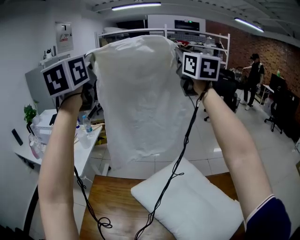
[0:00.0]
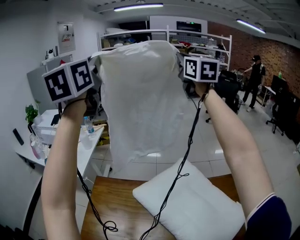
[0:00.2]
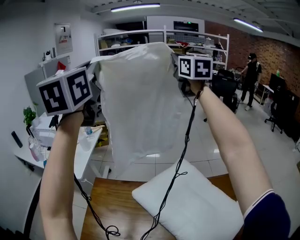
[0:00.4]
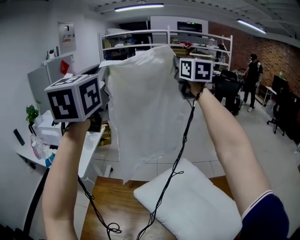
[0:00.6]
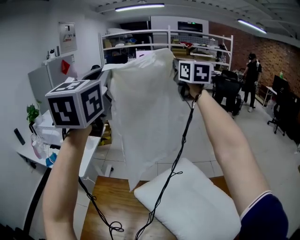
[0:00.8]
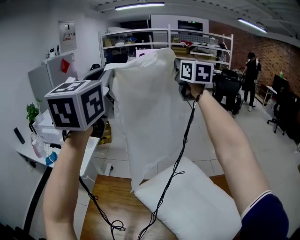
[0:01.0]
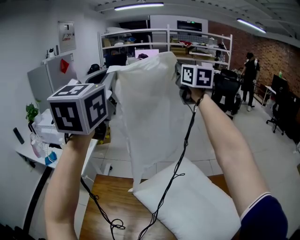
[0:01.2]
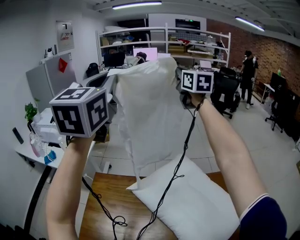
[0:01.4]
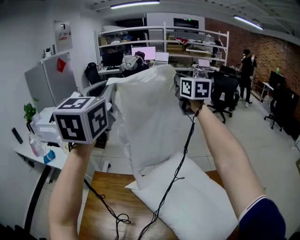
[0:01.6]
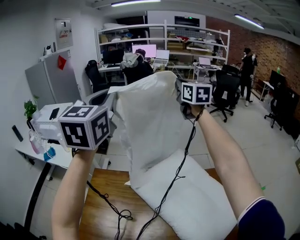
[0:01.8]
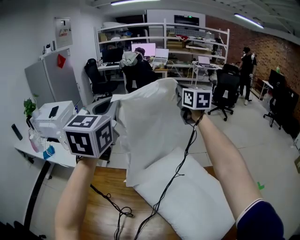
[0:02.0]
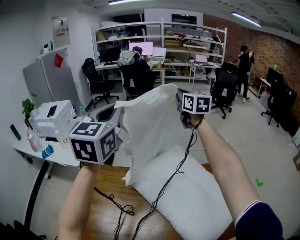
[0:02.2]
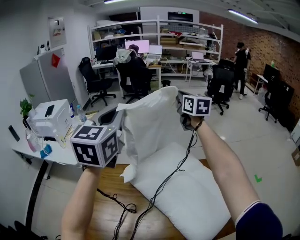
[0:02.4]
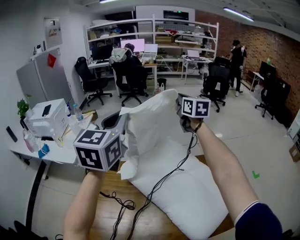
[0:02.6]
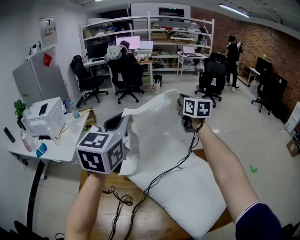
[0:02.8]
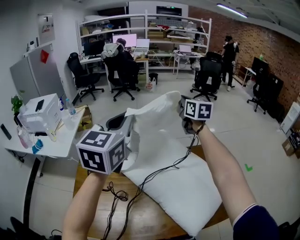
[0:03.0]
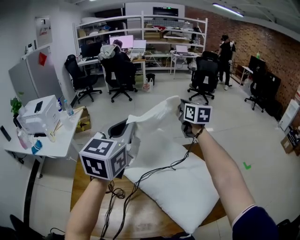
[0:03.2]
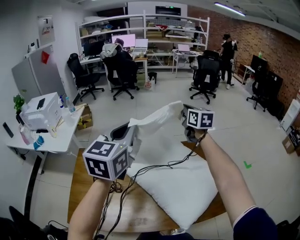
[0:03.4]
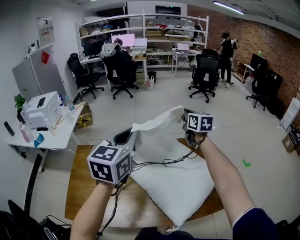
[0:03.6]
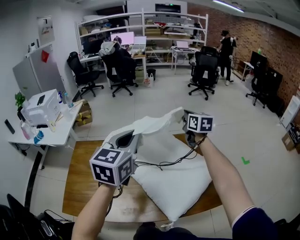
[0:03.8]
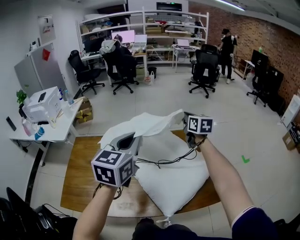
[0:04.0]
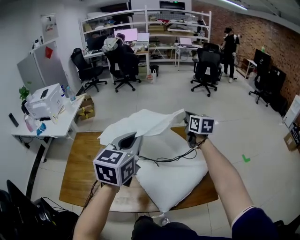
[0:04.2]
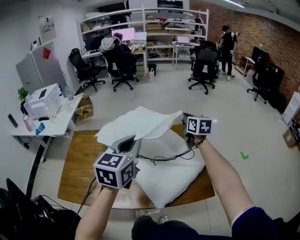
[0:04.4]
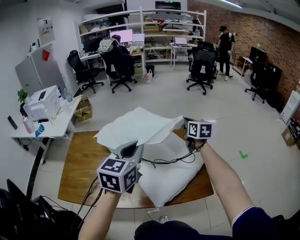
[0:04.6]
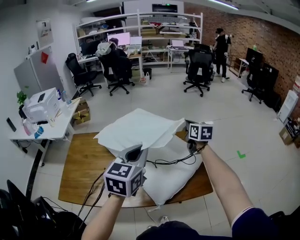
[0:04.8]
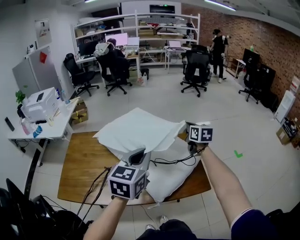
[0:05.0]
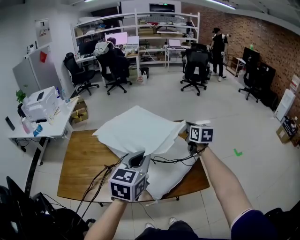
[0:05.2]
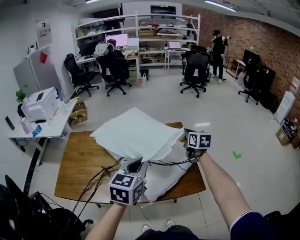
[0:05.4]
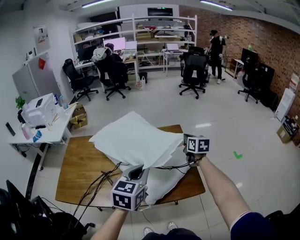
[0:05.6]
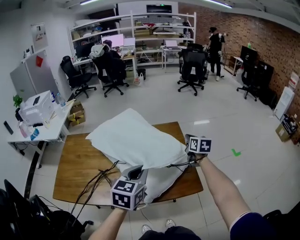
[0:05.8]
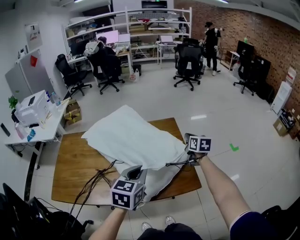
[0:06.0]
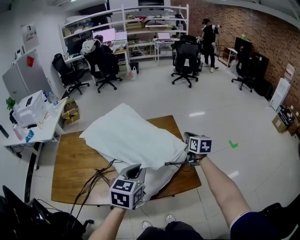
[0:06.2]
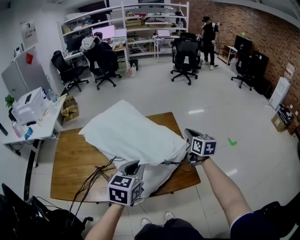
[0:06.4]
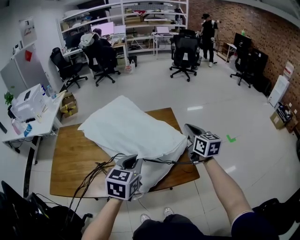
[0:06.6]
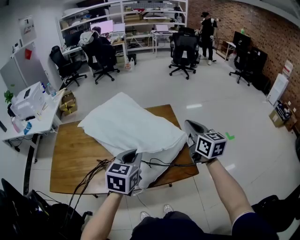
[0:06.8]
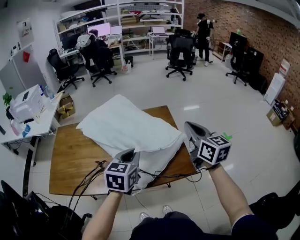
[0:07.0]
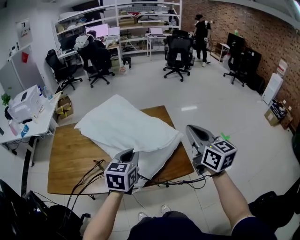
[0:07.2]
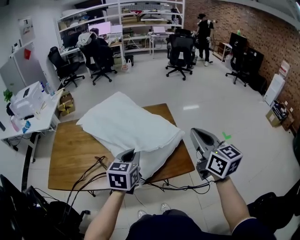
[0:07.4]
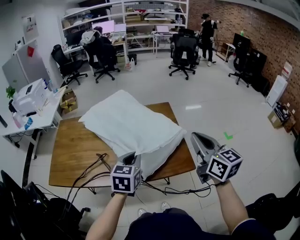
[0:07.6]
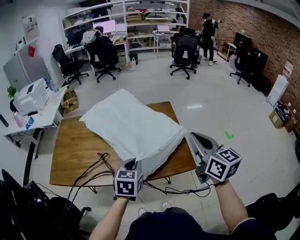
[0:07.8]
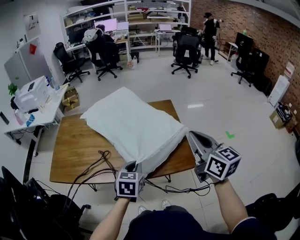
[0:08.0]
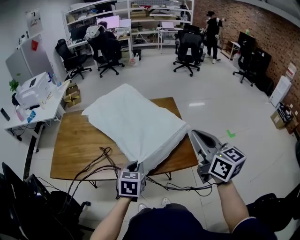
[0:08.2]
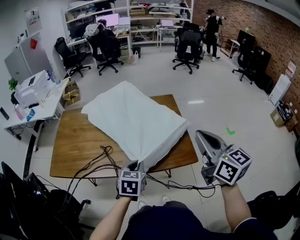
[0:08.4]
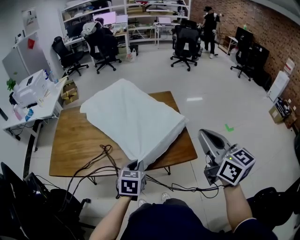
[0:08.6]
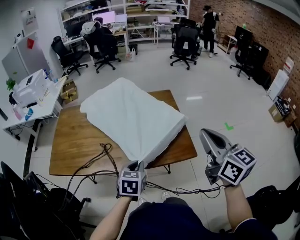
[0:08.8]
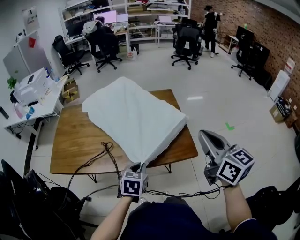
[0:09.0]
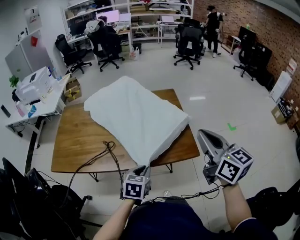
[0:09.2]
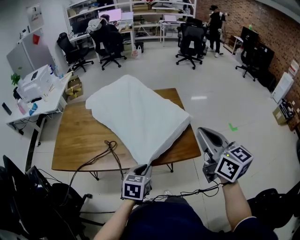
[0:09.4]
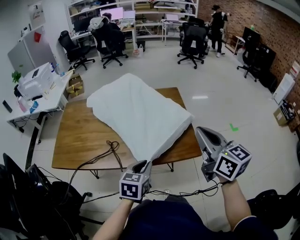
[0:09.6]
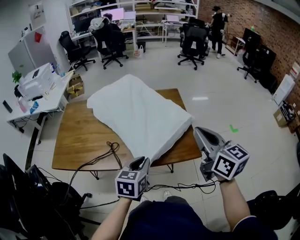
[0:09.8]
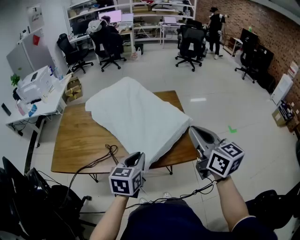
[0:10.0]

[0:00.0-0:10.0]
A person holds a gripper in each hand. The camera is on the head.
0:00.0 to 0:01.4: The right gripper moves downward, roughly 10 cm. Meanwhile the left gripper shifts roughly 15 cm to the right, downward and backward.
0:01.4 to 0:02.8: The grippers both shift downward, to the right and backward by roughly 25 cm.
0:02.8 to 0:04.2: Both grippers move to the right, backward and downward, roughly 30 cm.
0:04.2 to 0:05.8: The right gripper shifts some 20 cm to the right, downward and backward, while the left gripper goes about 20 cm downward, to the right and backward.
0:05.8 to 0:07.2: The right gripper moves backward and upward, approximately 25 cm, and changes its angle by some 20 degrees.
0:07.2 to 0:08.6: The left gripper heads downward and backward, covering approximately 15 cm, while the right gripper moves backward, some 10 cm.
0:08.6 to 0:10.0: The right gripper moves roughly 5 cm, while the left gripper goes approximately 5 cm upward.

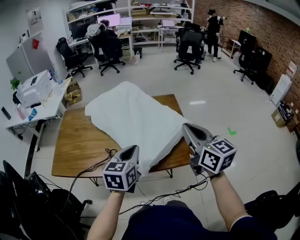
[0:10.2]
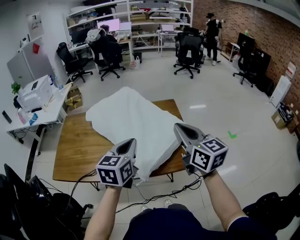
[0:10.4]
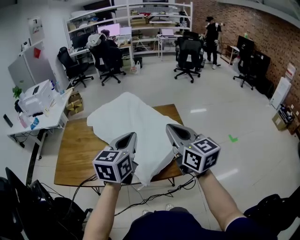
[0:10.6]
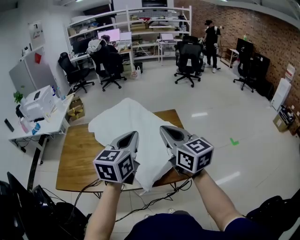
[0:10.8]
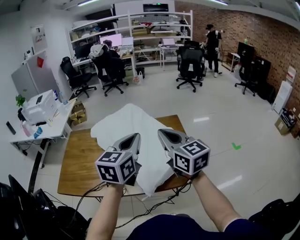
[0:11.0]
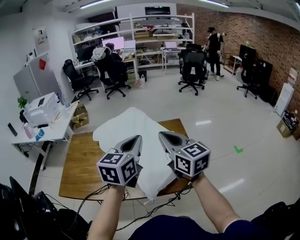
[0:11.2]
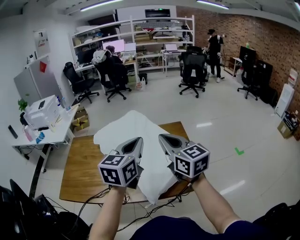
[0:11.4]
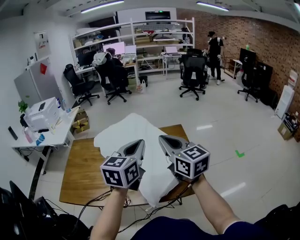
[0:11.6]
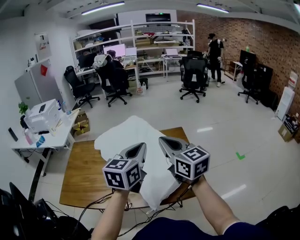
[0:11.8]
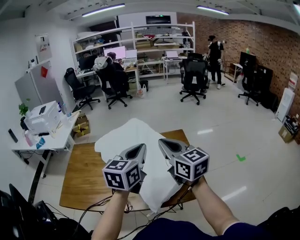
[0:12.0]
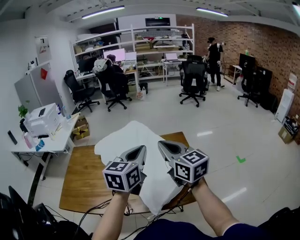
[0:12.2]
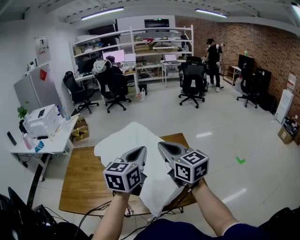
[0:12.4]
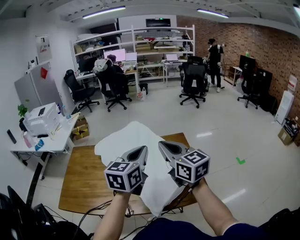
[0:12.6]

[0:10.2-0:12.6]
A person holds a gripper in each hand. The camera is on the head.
0:10.2 to 0:11.4: The right gripper travels to the left and forward by roughly 15 cm. Meanwhile the left gripper heads upward and forward, covering roughly 15 cm.
0:11.4 to 0:12.6: The grippers move only a little.

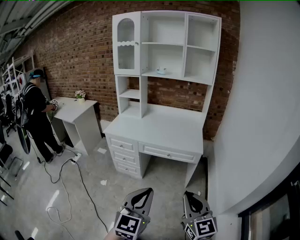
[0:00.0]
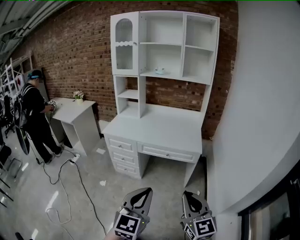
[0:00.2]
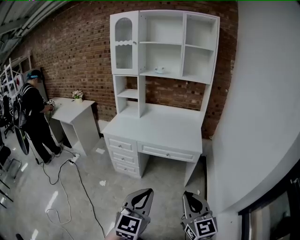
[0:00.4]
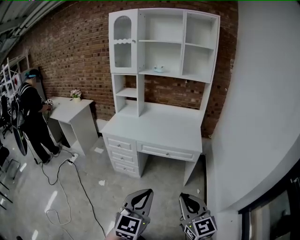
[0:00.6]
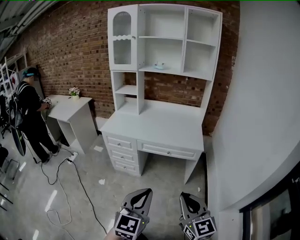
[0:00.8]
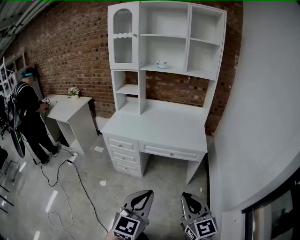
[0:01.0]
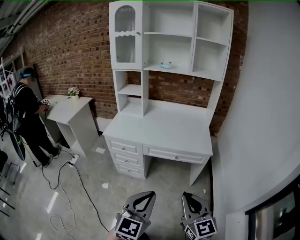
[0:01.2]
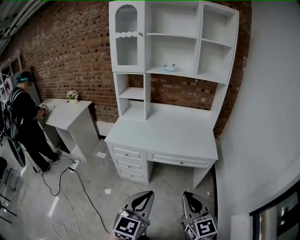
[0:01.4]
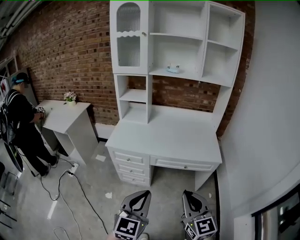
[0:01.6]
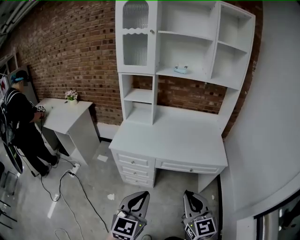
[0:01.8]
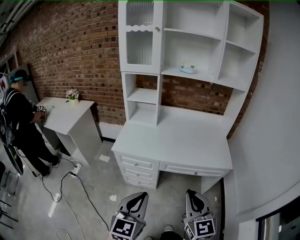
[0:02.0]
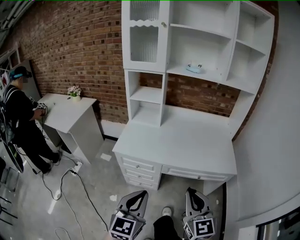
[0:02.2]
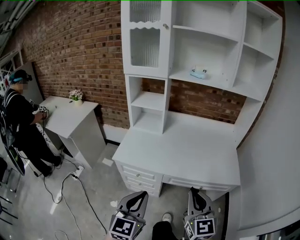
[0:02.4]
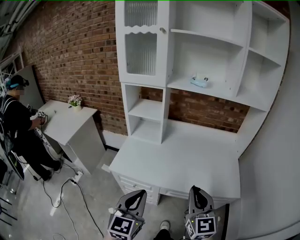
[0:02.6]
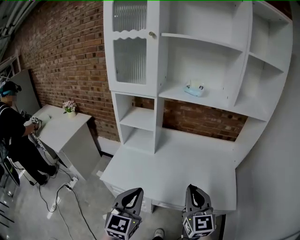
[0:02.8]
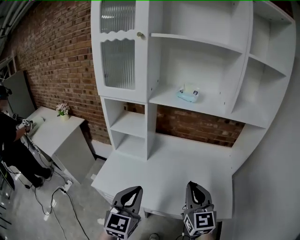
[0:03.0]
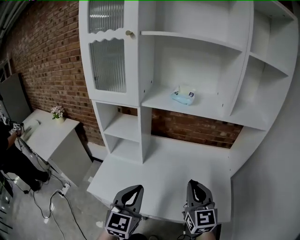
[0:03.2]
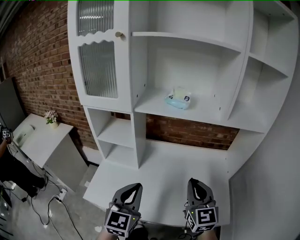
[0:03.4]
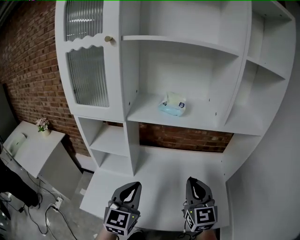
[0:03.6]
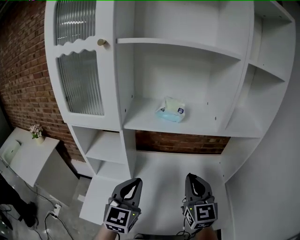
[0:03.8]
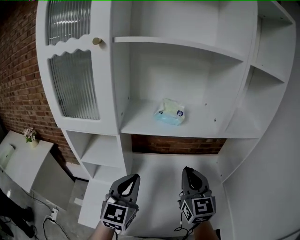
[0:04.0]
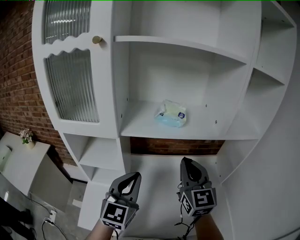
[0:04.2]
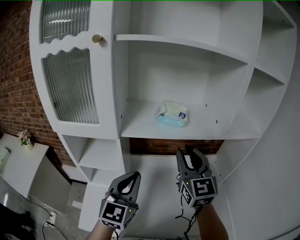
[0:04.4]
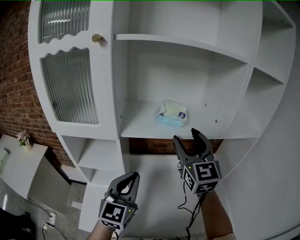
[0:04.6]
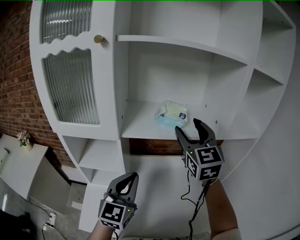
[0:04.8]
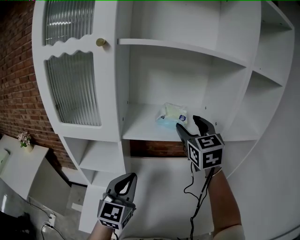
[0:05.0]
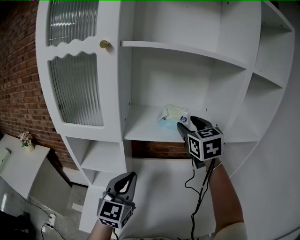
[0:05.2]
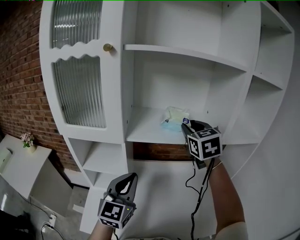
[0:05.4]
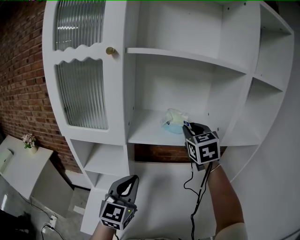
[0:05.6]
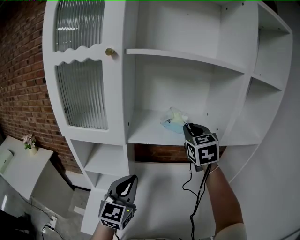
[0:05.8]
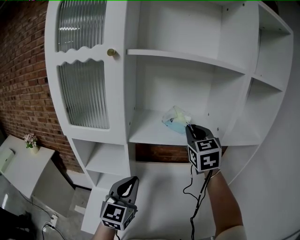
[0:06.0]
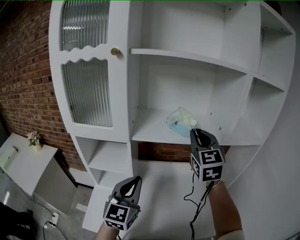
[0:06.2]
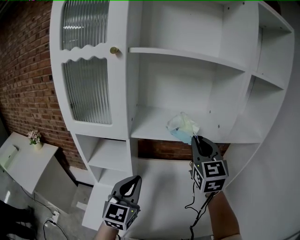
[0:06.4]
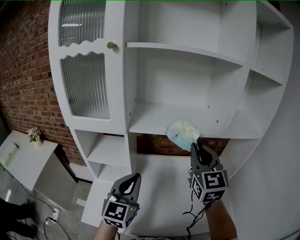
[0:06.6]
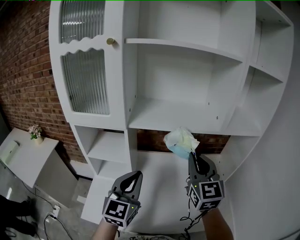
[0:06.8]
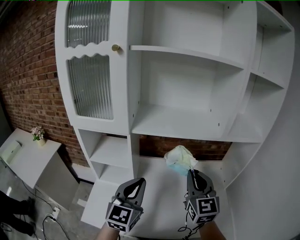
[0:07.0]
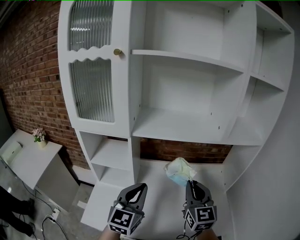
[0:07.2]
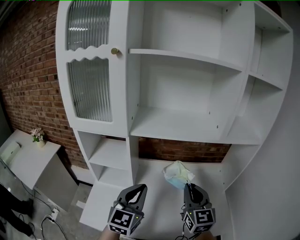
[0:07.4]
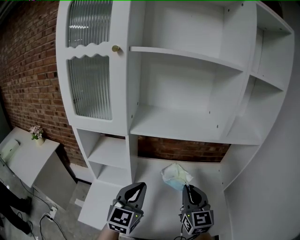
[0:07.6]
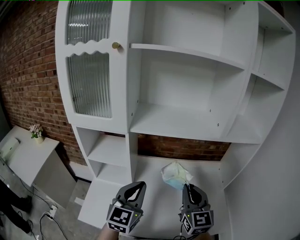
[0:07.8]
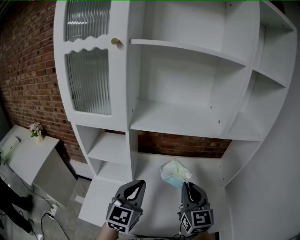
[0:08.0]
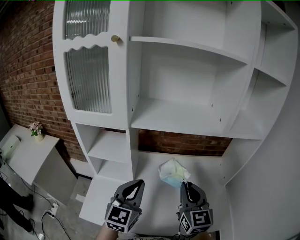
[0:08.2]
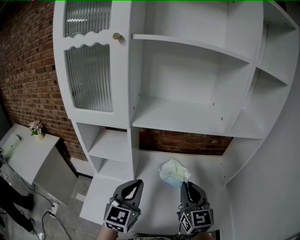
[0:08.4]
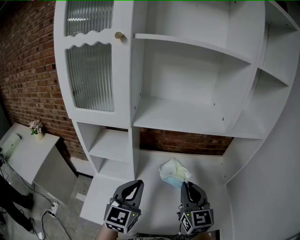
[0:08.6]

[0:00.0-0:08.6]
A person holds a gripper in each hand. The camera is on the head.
0:00.0 to 0:01.4: The grippers both shift forward and to the left by roughly 20 cm.
0:01.4 to 0:02.8: Both grippers are carried forward, some 40 cm.
0:02.8 to 0:04.4: The right gripper moves forward and upward, some 35 cm; the left gripper shifts roughly 35 cm forward, and changes its angle by approximately 20 degrees.
0:04.4 to 0:05.8: The right gripper shifts about 10 cm forward and upward, and opens, then closes once more.
0:05.8 to 0:07.2: The left gripper is displaced backward by some 5 cm. Meanwhile the right gripper goes some 25 cm backward and downward.
0:07.2 to 0:08.6: The grippers move only a little.

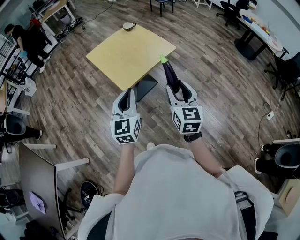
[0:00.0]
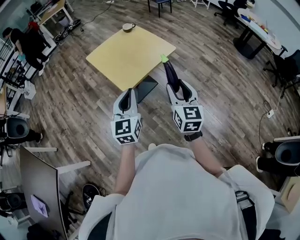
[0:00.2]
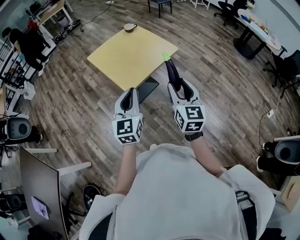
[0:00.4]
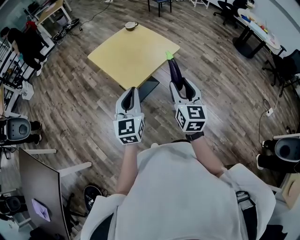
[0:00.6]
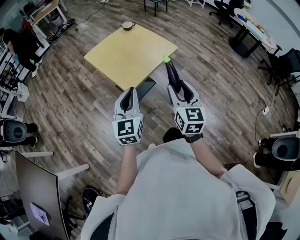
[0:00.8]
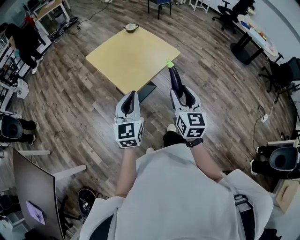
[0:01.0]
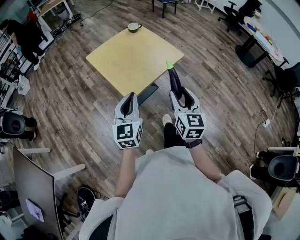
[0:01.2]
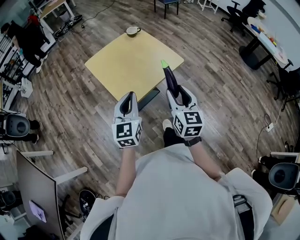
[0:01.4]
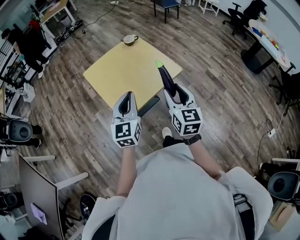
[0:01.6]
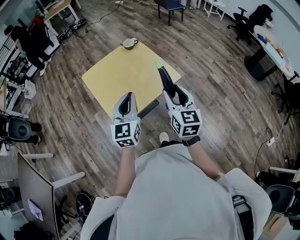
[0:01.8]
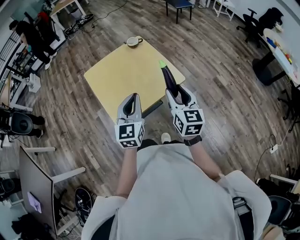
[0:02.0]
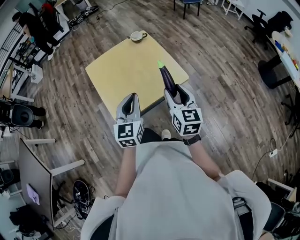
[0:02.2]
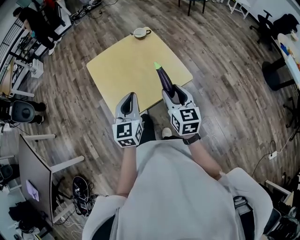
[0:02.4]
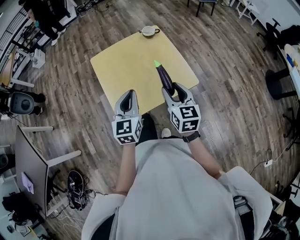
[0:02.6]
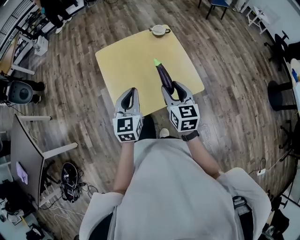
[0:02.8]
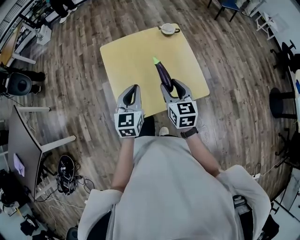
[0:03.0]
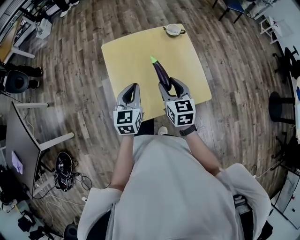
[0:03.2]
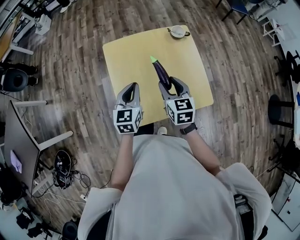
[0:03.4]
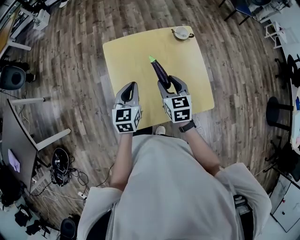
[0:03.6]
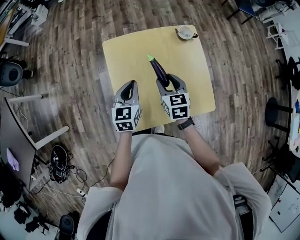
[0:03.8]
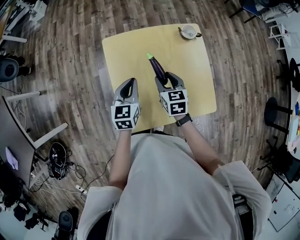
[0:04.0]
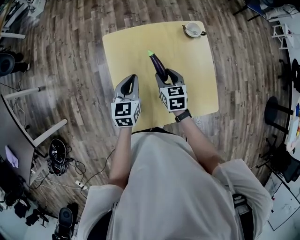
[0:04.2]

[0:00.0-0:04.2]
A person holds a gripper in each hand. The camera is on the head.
0:00.0 to 0:01.4: Both grippers move forward, some 15 cm.
0:01.4 to 0:02.8: The grippers both shift forward by some 20 cm. The right gripper swivels some 30 degrees; the left gripper rotates some 20 degrees.
0:02.8 to 0:04.2: The grippers both shift forward, downward and to the left by some 30 cm. The right gripper rotates approximately 20 degrees.
